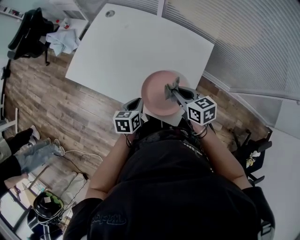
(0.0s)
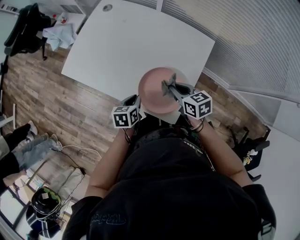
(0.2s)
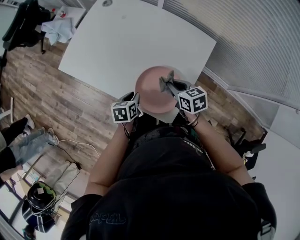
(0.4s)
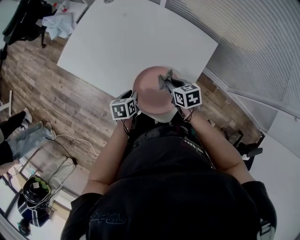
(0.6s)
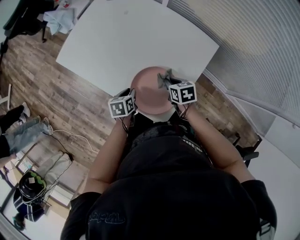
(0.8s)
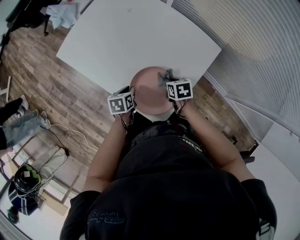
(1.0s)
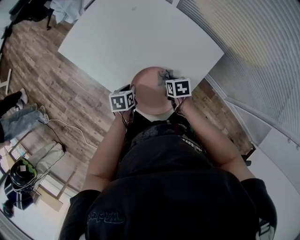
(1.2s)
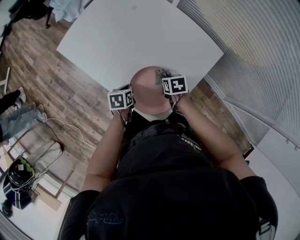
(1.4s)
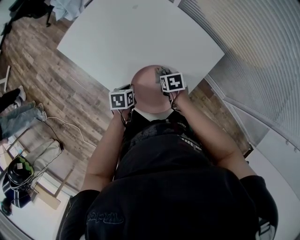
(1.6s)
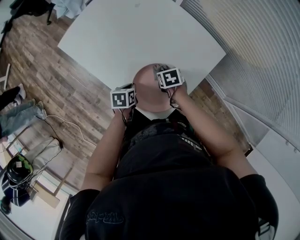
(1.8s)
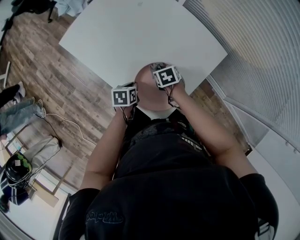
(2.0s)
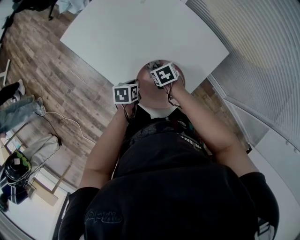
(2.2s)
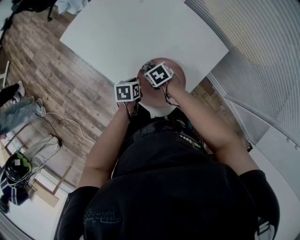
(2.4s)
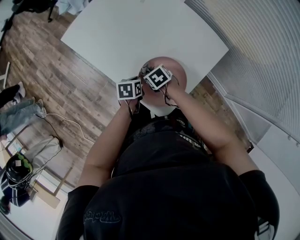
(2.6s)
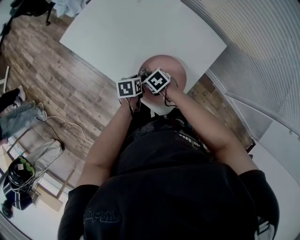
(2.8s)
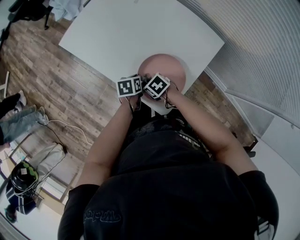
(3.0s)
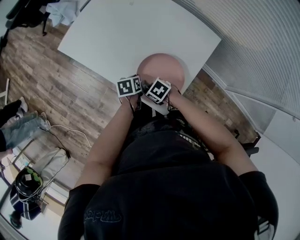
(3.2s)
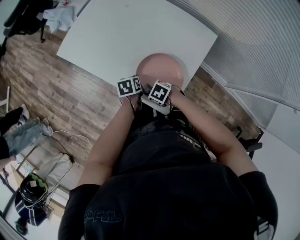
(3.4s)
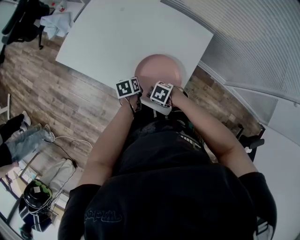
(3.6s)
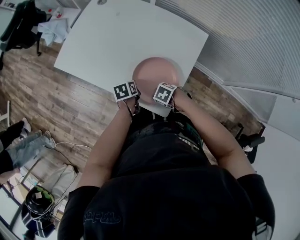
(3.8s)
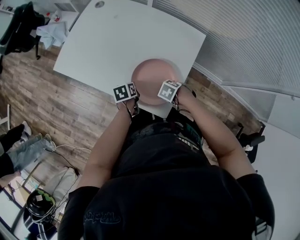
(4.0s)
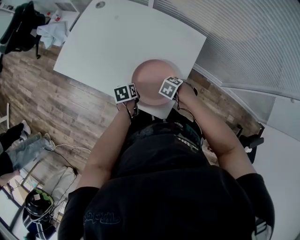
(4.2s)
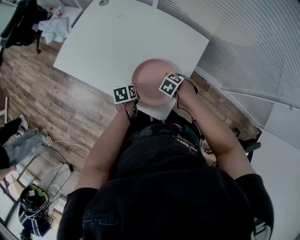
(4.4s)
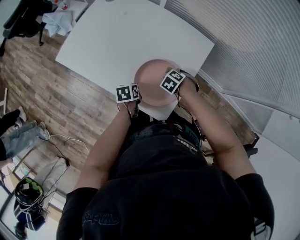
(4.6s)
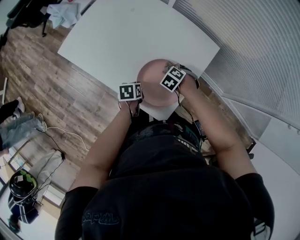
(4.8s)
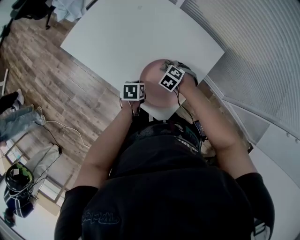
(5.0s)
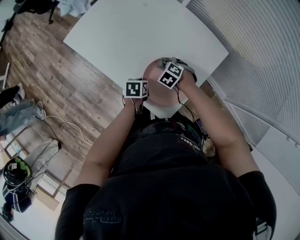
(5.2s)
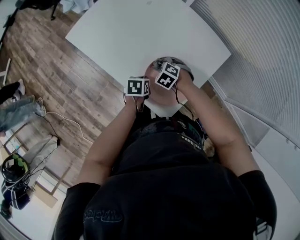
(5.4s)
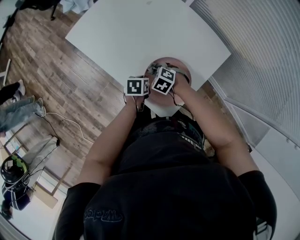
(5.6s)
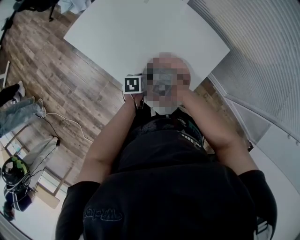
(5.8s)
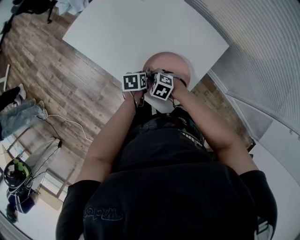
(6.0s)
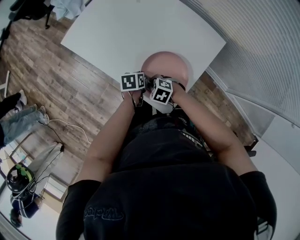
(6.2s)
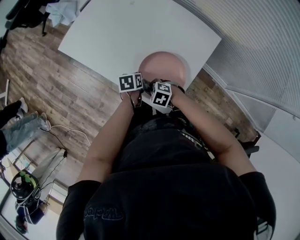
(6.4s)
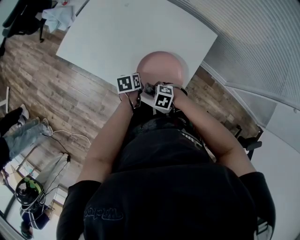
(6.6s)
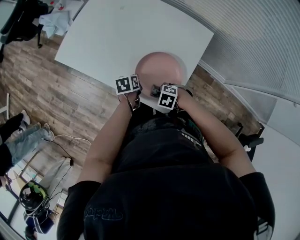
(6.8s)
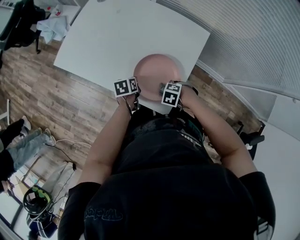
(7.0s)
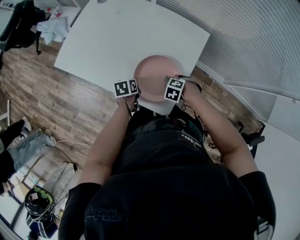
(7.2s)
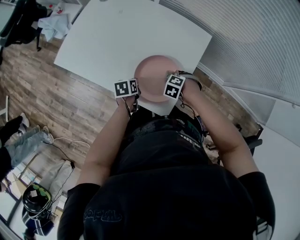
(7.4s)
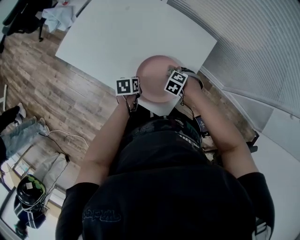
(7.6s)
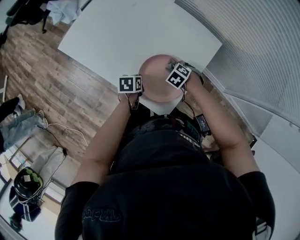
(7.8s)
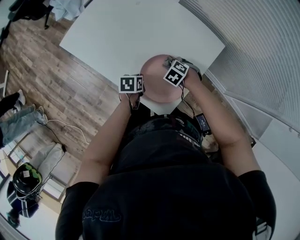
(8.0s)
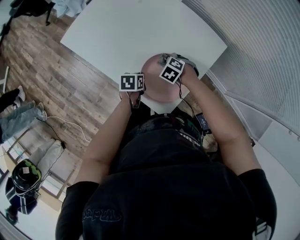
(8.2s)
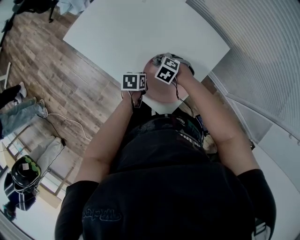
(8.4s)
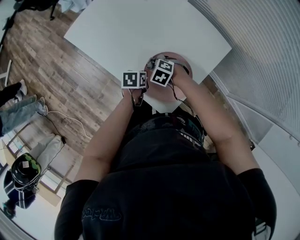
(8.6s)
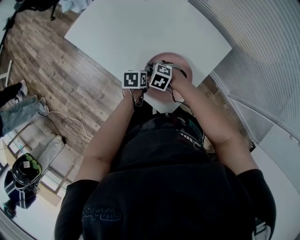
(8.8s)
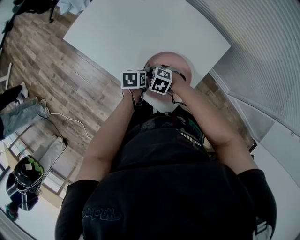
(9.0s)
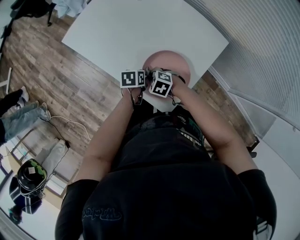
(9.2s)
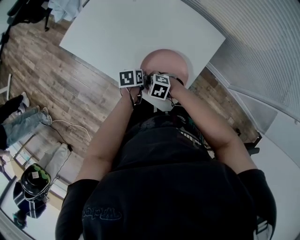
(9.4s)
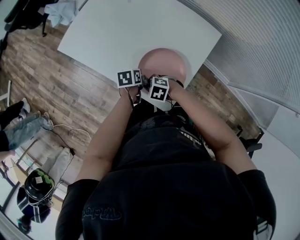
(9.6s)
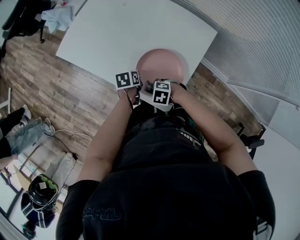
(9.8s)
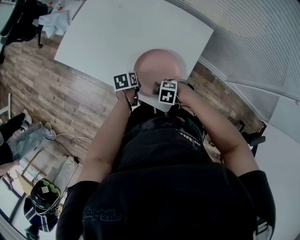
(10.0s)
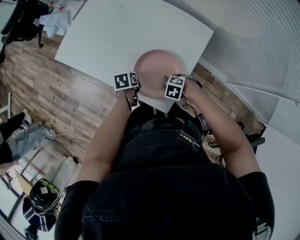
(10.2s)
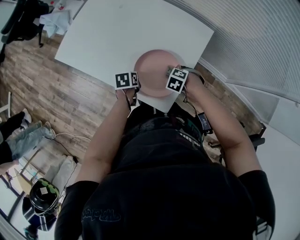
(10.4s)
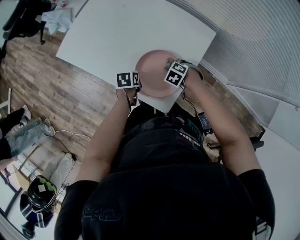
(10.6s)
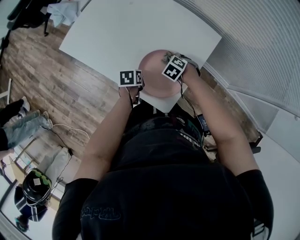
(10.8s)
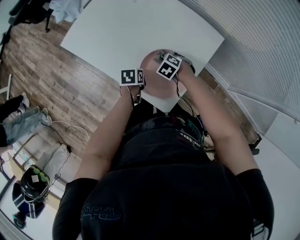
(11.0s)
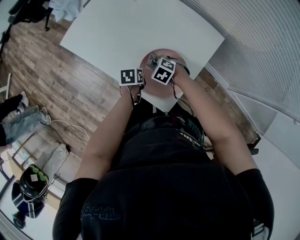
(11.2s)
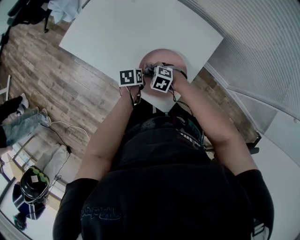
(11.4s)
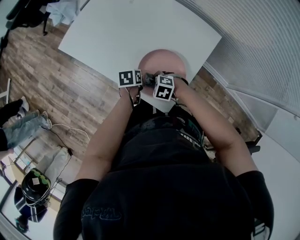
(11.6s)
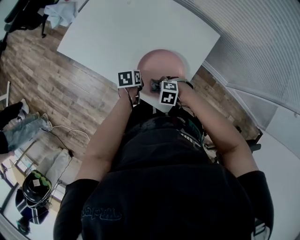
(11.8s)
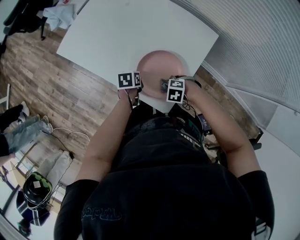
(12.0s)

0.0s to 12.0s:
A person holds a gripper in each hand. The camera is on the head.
0.0s to 1.6s: The right gripper goes approximately 20 cm downward, and tips its fingers downward by some 30 degrees; the left gripper heads downward, covering about 10 cm, and changes its angle by some 20 degrees.
1.6s to 3.0s: The right gripper changes place by some 15 cm, and changes its angle by approximately 30 degrees.
3.0s to 4.4s: The right gripper changes place by roughly 20 cm, and swivels approximately 30 degrees.
4.4s to 6.0s: The right gripper moves approximately 20 cm, and changes its angle by about 30 degrees.
6.0s to 7.6s: The right gripper changes place by roughly 20 cm, and turns by approximately 30 degrees.
7.6s to 9.0s: The right gripper shifts by about 20 cm, and turns by about 30 degrees.
9.0s to 10.4s: The right gripper shifts by some 15 cm, and turns by roughly 20 degrees.

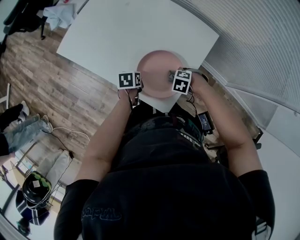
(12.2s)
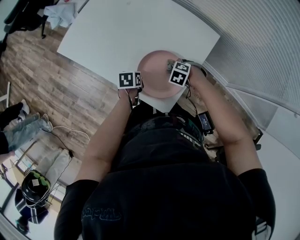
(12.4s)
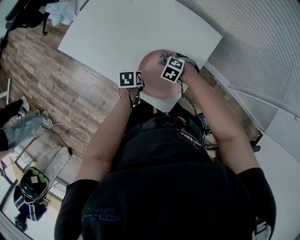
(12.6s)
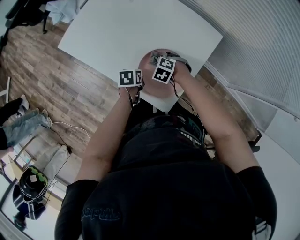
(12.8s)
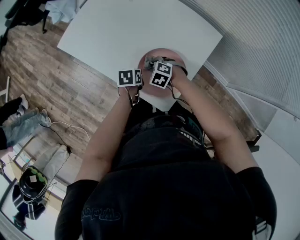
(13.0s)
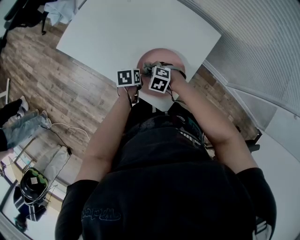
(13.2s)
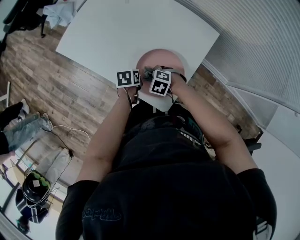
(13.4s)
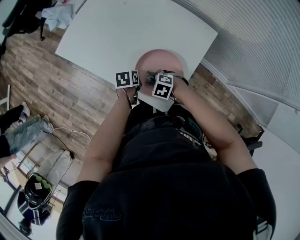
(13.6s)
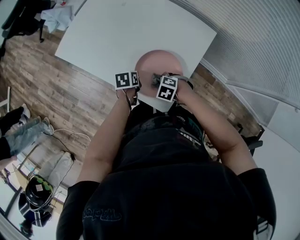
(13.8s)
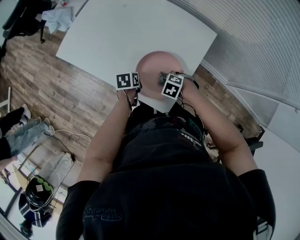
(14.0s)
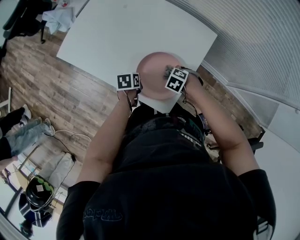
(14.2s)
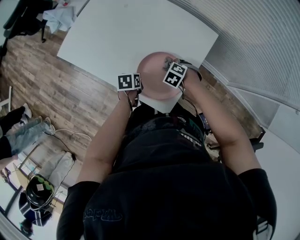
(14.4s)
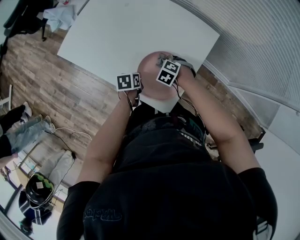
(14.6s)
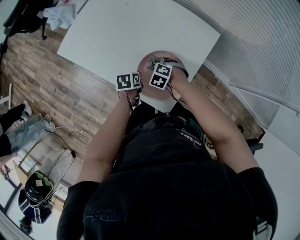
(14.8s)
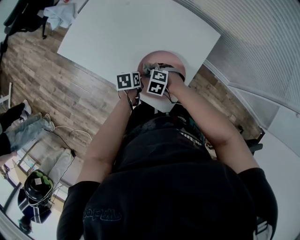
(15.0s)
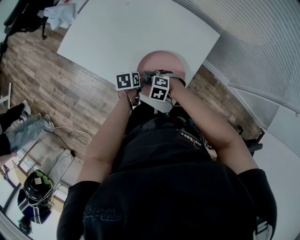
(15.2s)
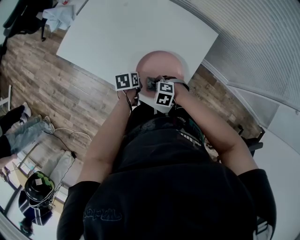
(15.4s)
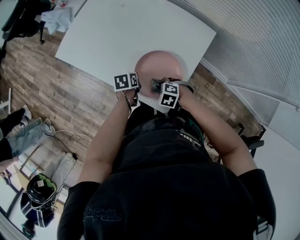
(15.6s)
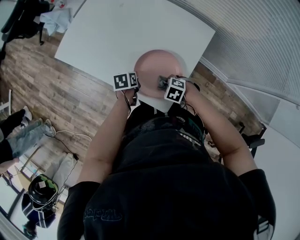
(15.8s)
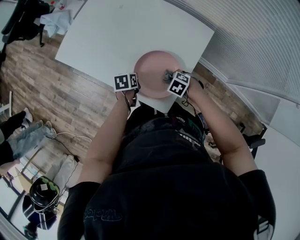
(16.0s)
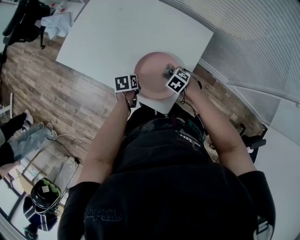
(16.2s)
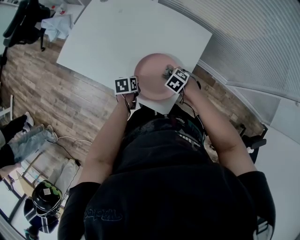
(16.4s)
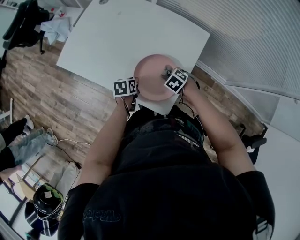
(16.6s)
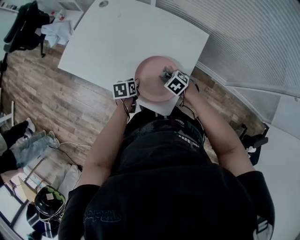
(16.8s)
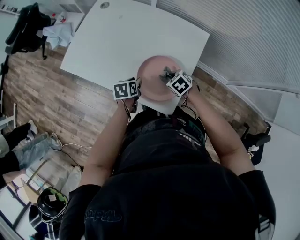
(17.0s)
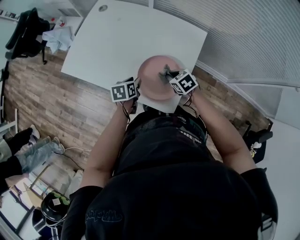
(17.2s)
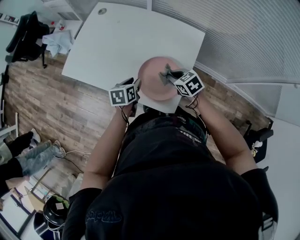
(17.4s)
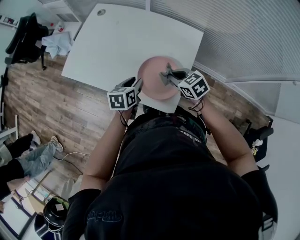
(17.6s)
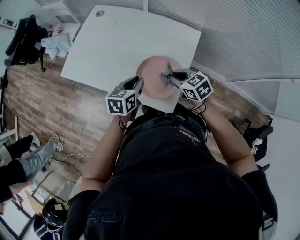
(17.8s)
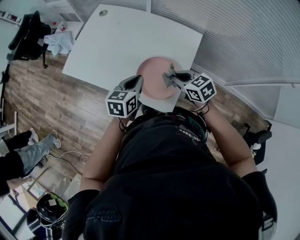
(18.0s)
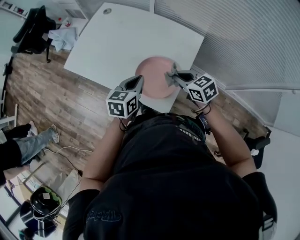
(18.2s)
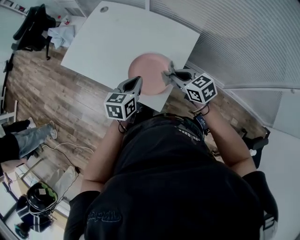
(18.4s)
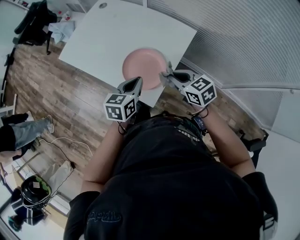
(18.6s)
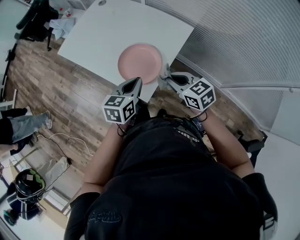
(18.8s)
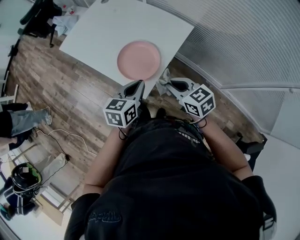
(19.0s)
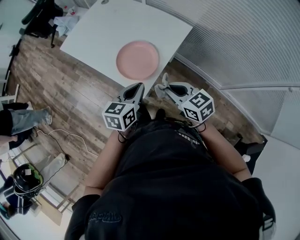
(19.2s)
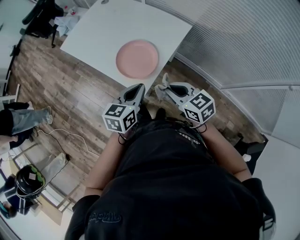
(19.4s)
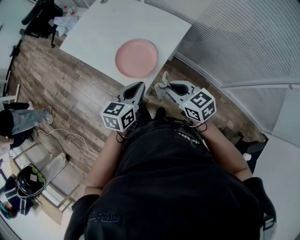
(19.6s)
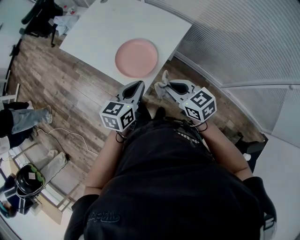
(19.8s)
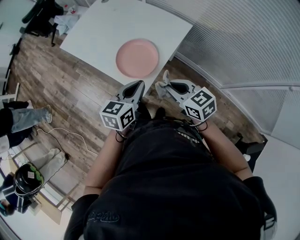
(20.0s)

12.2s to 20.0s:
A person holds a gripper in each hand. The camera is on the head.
15.4s to 16.8s: The left gripper opens its fingers, while the right gripper moves approximately 10 cm, and rotates about 30 degrees.
16.8s to 18.4s: Both grippers move upward, about 20 cm. The right gripper tilts its fingers approximately 40 degrees upward. Meanwhile the left gripper rotates some 30 degrees, and closes.
18.4s to 20.0s: The left gripper travels backward and to the right by roughly 15 cm. Meanwhile the right gripper goes approximately 15 cm backward.

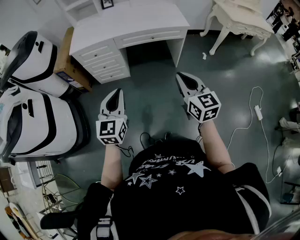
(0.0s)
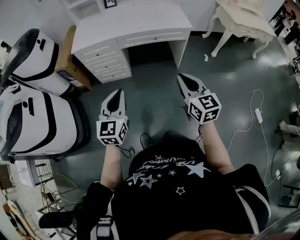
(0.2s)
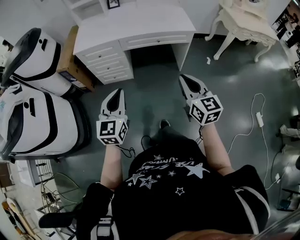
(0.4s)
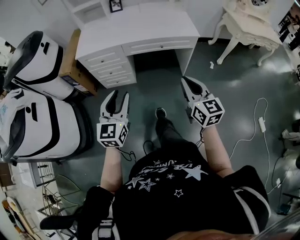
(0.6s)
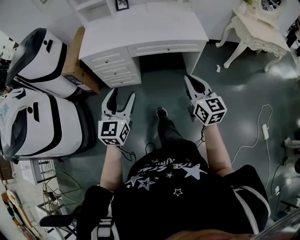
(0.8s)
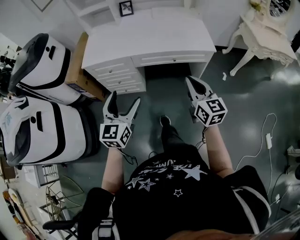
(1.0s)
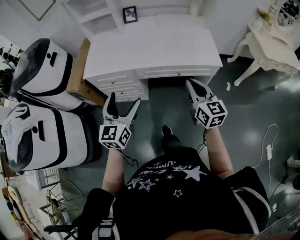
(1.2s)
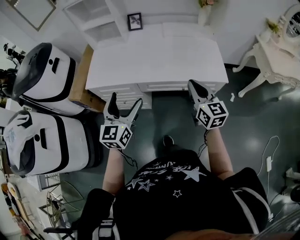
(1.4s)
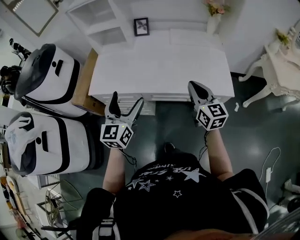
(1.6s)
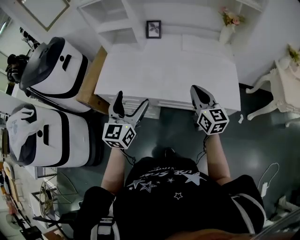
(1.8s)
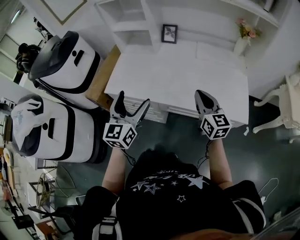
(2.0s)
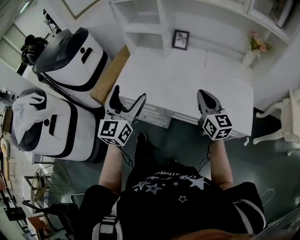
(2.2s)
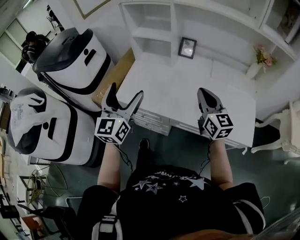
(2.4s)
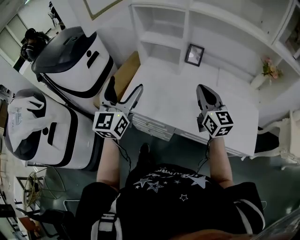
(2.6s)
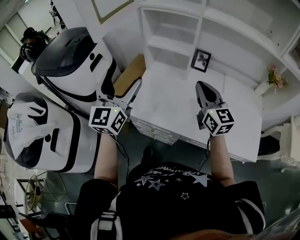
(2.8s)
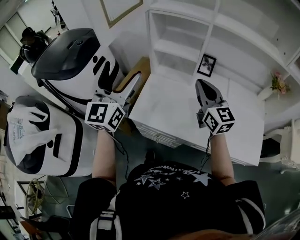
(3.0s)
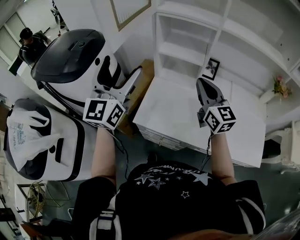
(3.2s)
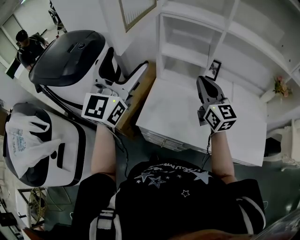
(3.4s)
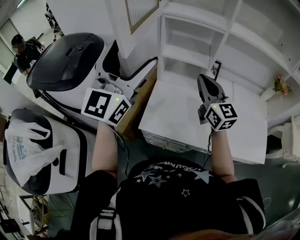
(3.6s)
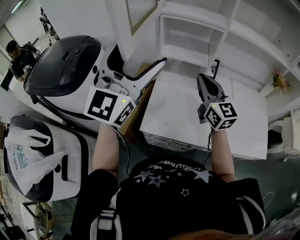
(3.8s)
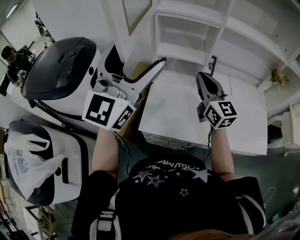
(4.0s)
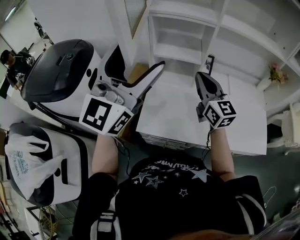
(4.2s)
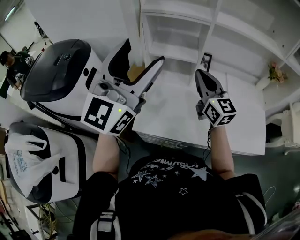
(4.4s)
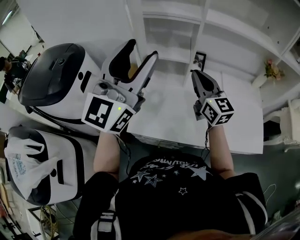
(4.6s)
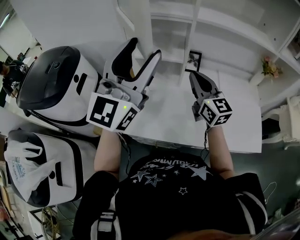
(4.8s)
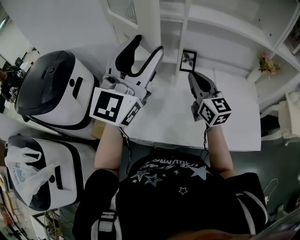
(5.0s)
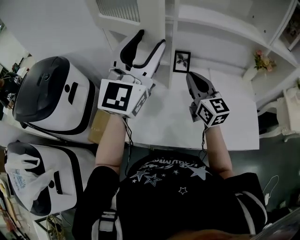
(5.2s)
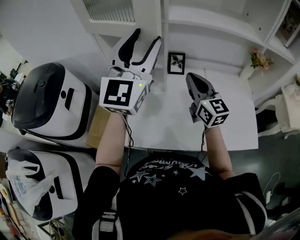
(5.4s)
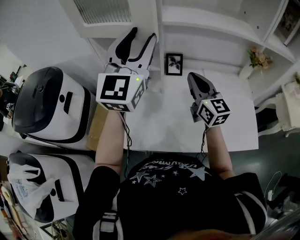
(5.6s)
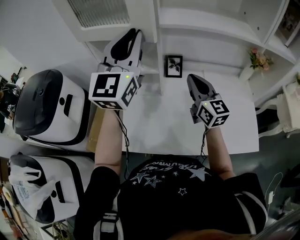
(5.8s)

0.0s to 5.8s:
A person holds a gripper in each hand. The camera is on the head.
0.0s to 1.4s: The two grippers go approximately 40 cm forward. The left gripper opens.
1.4s to 2.8s: The left gripper is displaced forward, to the left and upward by roughly 40 cm, and changes its angle by approximately 20 degrees; the right gripper travels forward and to the left by roughly 40 cm, and changes its angle by about 20 degrees.
2.8s to 4.4s: The right gripper travels forward and to the left by about 10 cm, while the left gripper shifts roughly 15 cm upward and forward, and swivels about 30 degrees.
4.4s to 5.8s: The right gripper shifts roughly 15 cm to the right and forward; the left gripper goes approximately 20 cm forward and to the right, and closes its fingers.
